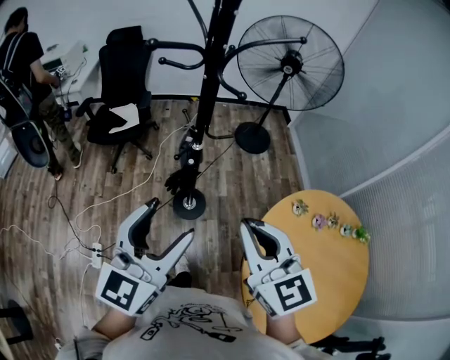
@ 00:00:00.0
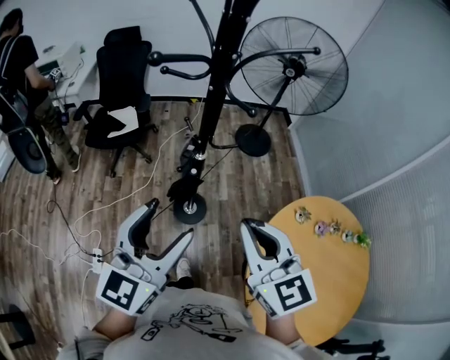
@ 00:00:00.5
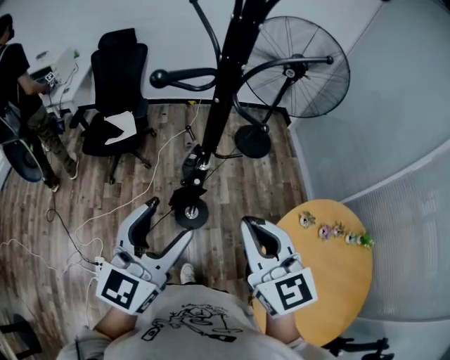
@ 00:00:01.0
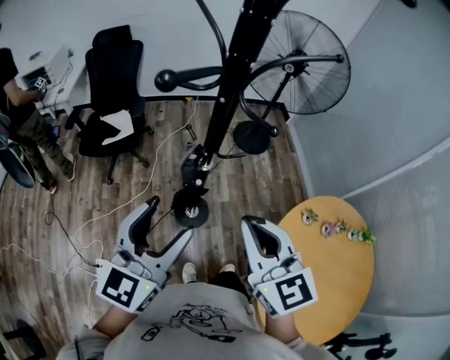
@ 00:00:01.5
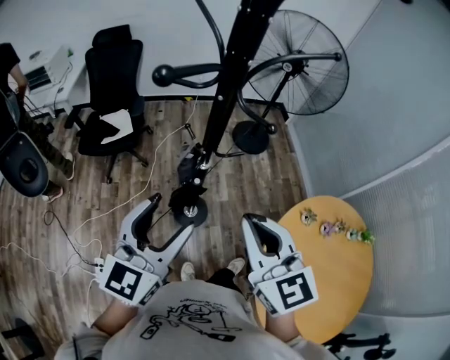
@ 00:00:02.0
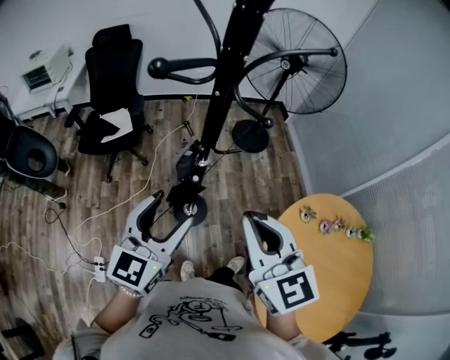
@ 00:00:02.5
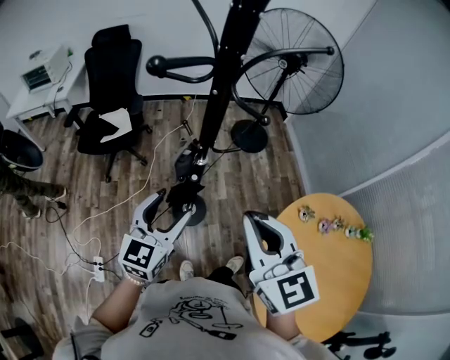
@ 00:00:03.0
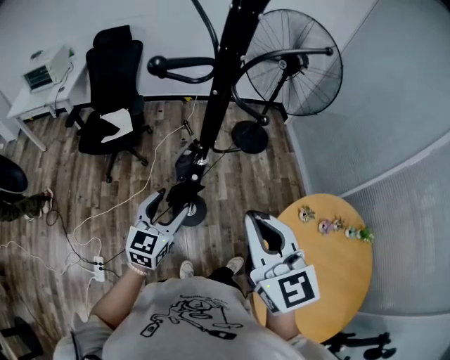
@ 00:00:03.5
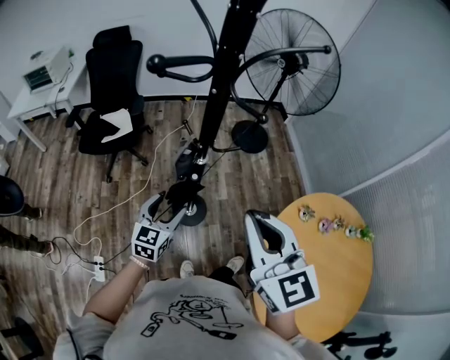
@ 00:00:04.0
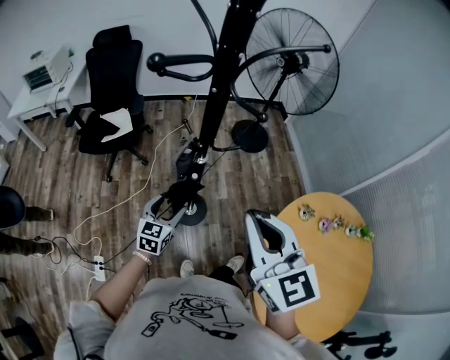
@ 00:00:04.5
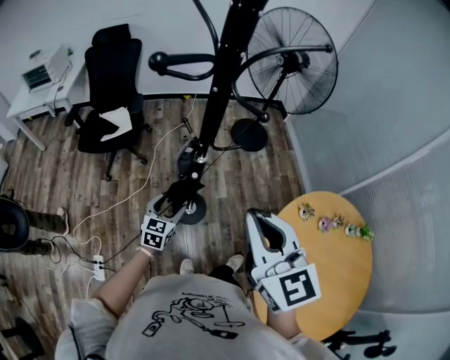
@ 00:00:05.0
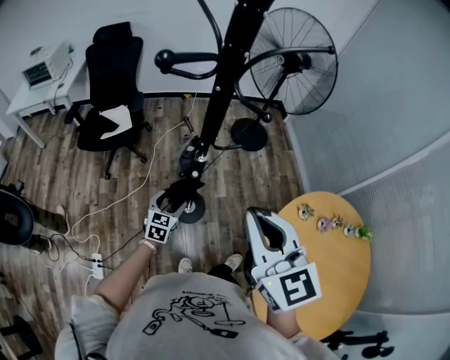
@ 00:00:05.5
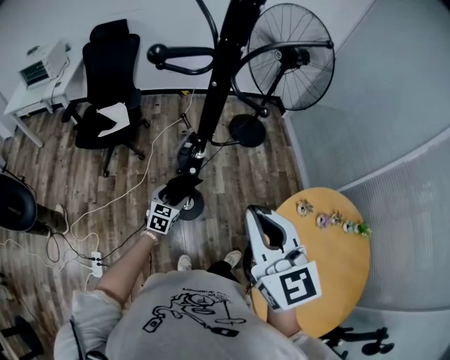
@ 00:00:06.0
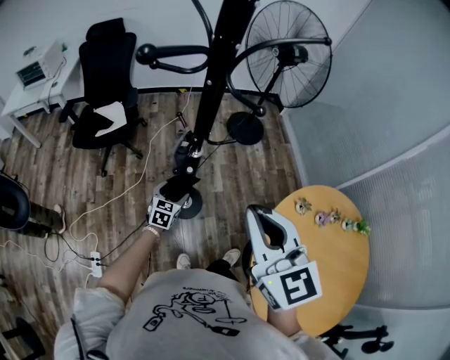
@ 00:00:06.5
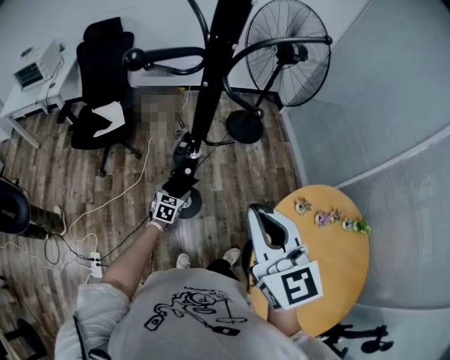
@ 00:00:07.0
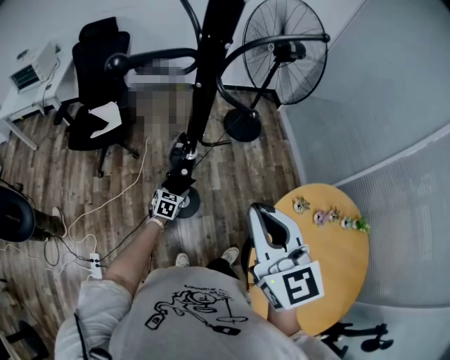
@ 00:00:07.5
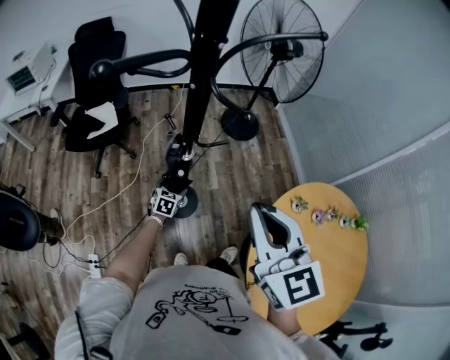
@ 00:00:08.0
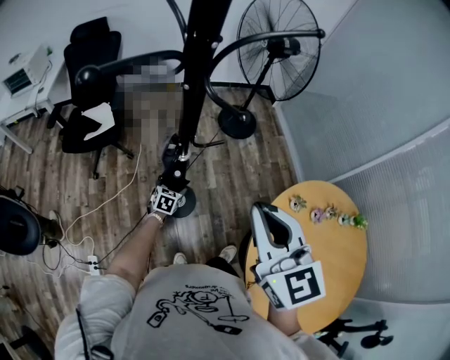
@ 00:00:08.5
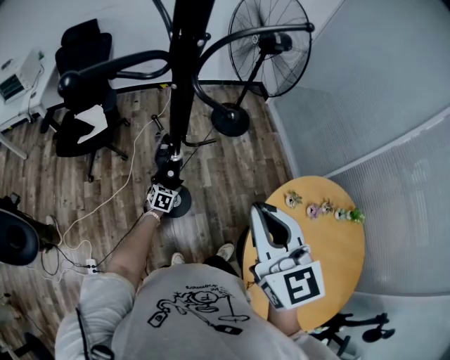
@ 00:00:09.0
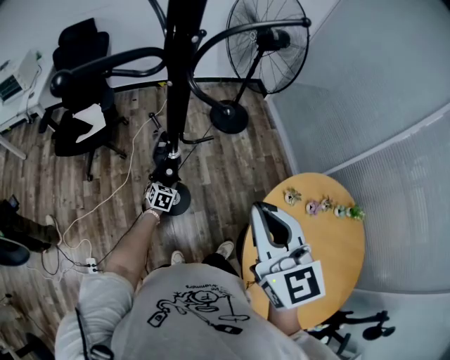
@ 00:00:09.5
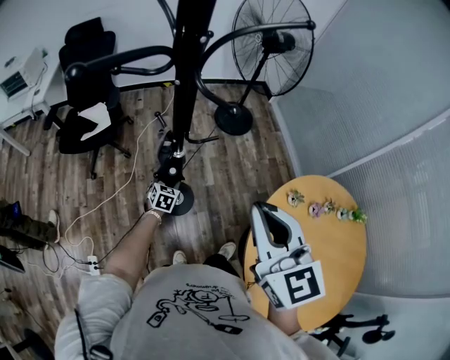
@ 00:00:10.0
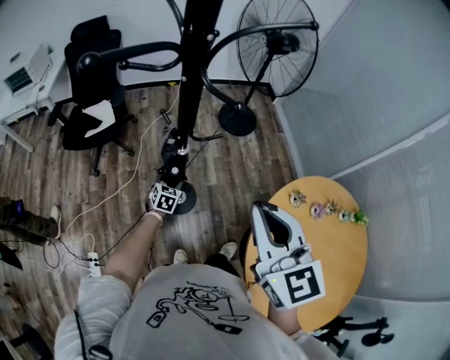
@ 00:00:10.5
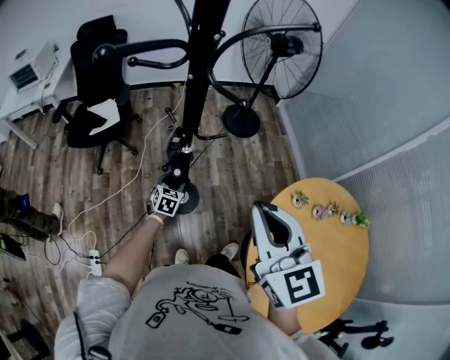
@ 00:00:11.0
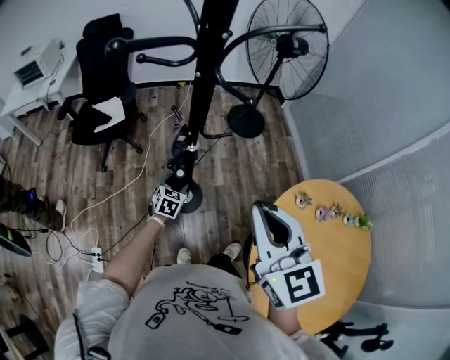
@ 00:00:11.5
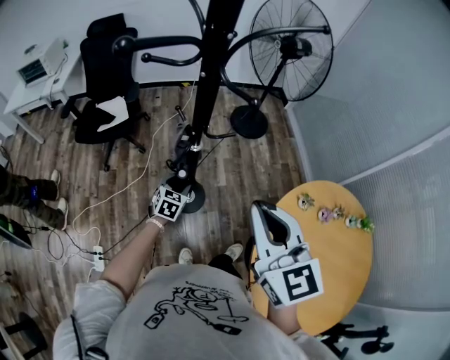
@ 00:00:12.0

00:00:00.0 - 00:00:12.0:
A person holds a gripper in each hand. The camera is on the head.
00:00:00.0 - 00:00:02.0: Both grippers travel together forward and to the left, about 15 cm.
00:00:02.0 - 00:00:04.0: The left gripper moves downward, approximately 20 cm.
00:00:04.0 - 00:00:06.0: The left gripper moves downward, roughly 15 cm.
00:00:06.0 - 00:00:08.0: The left gripper goes about 10 cm downward and forward.
00:00:08.0 - 00:00:10.0: The left gripper closes up.
00:00:10.0 - 00:00:12.0: The left gripper shifts about 10 cm upward and backward.

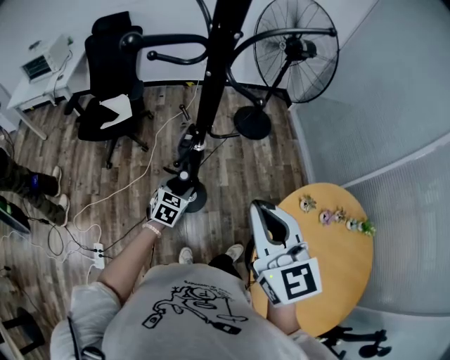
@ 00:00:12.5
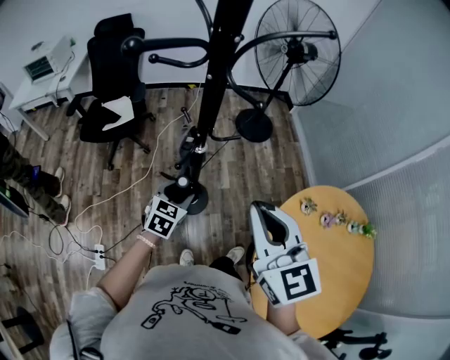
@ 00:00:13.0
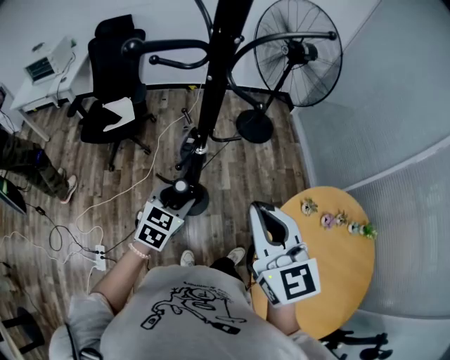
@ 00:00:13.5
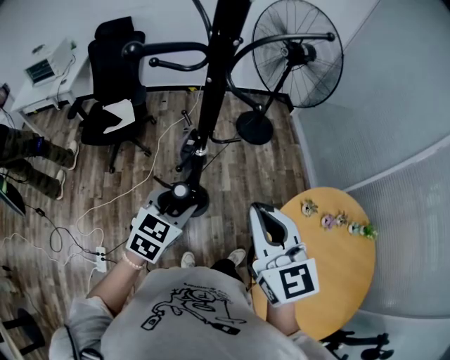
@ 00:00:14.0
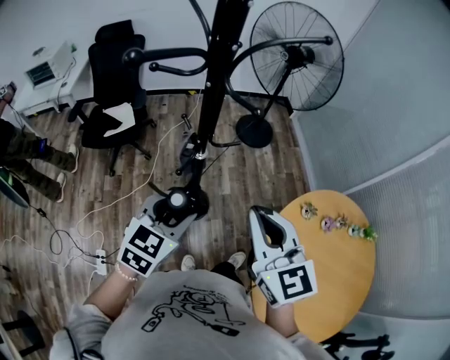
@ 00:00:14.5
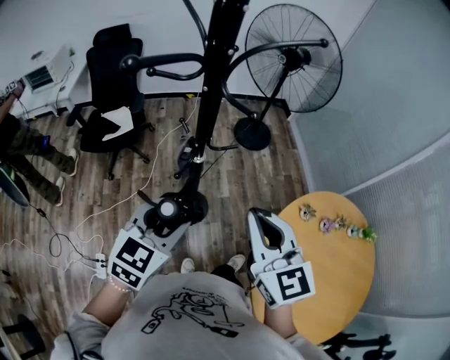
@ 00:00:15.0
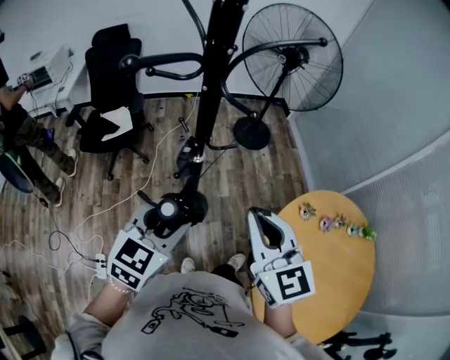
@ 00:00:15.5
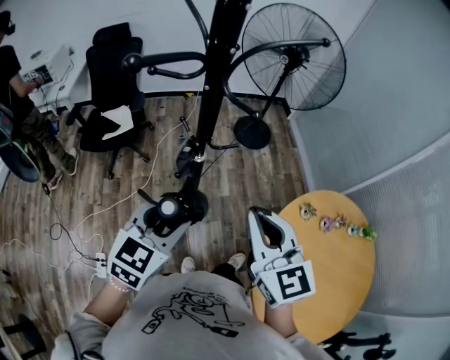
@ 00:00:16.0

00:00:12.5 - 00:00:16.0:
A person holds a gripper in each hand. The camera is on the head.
00:00:12.5 - 00:00:14.5: The left gripper shifts about 25 cm upward and backward.
00:00:14.5 - 00:00:16.0: The grippers move only a little.

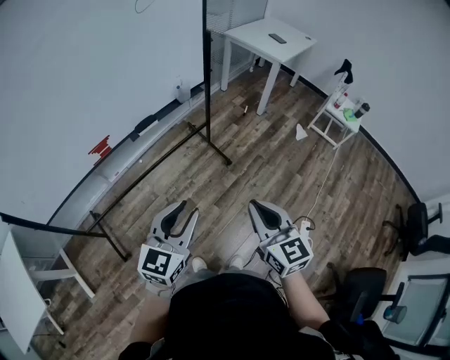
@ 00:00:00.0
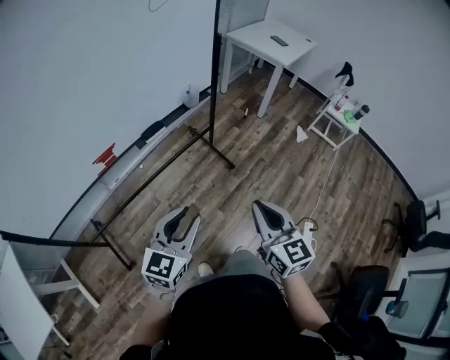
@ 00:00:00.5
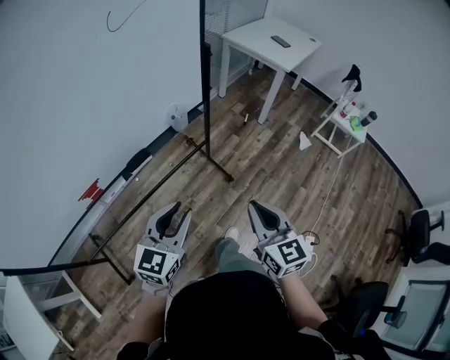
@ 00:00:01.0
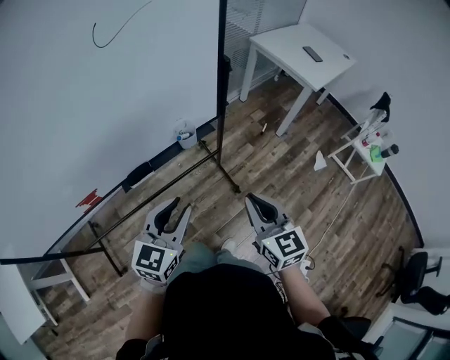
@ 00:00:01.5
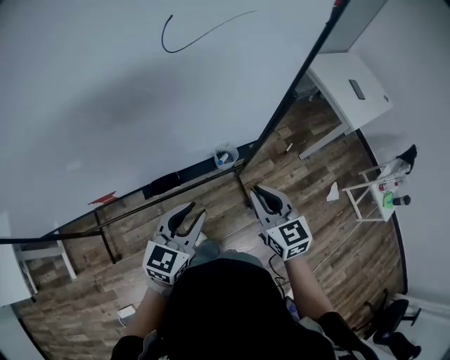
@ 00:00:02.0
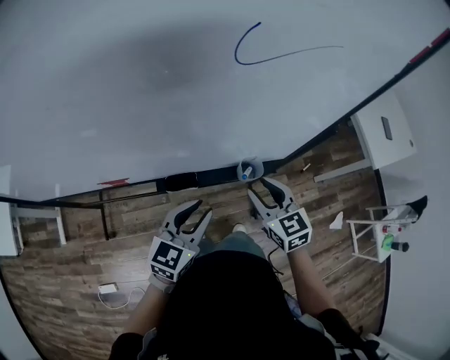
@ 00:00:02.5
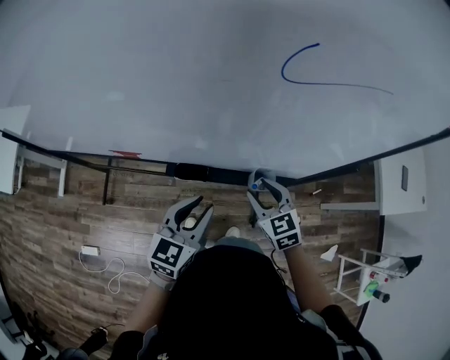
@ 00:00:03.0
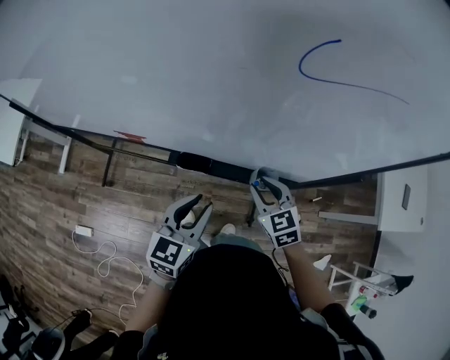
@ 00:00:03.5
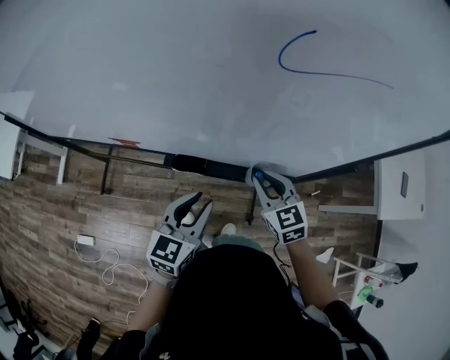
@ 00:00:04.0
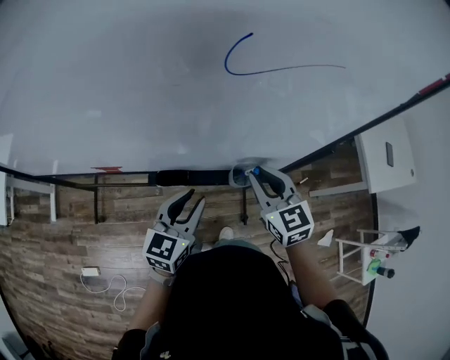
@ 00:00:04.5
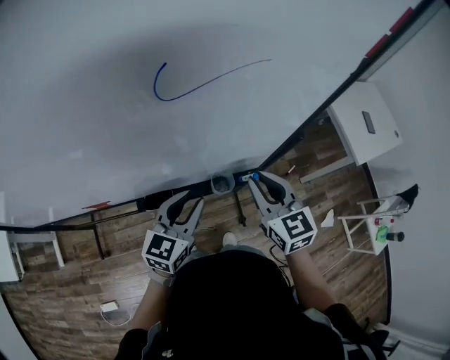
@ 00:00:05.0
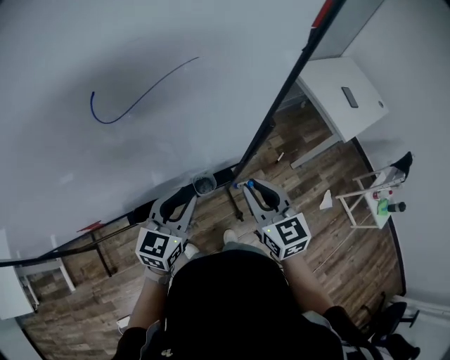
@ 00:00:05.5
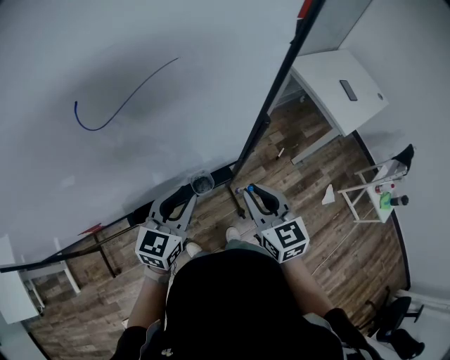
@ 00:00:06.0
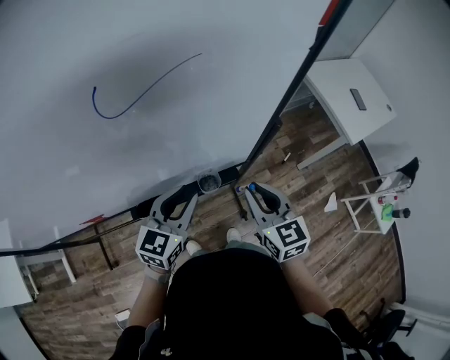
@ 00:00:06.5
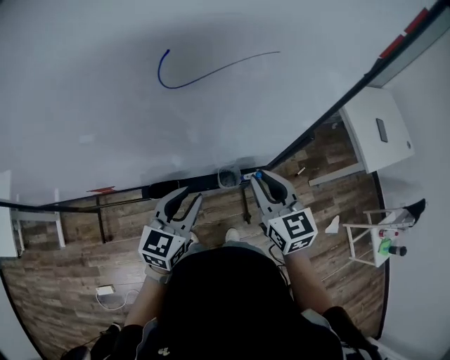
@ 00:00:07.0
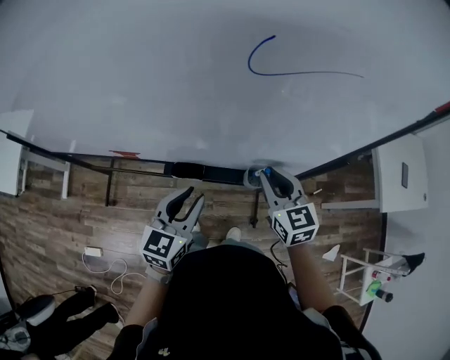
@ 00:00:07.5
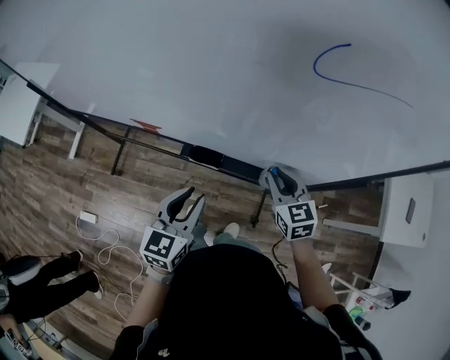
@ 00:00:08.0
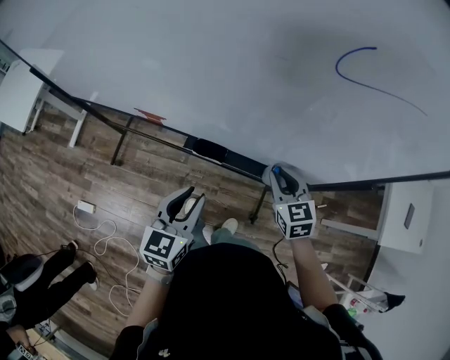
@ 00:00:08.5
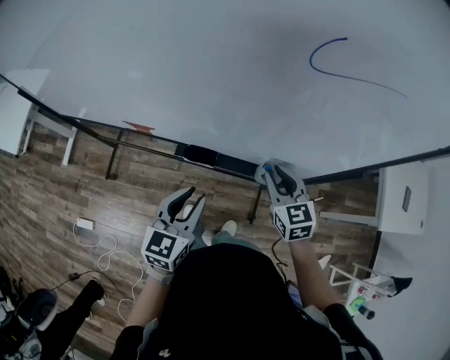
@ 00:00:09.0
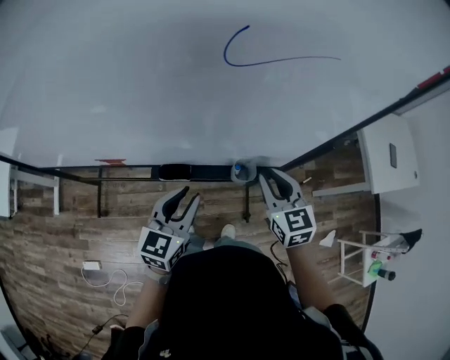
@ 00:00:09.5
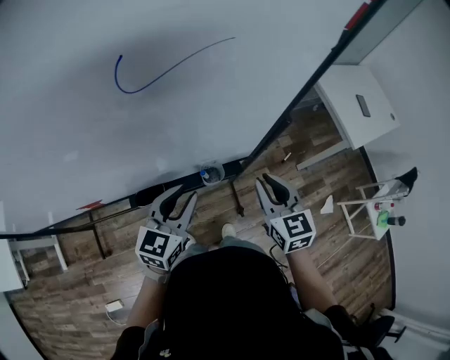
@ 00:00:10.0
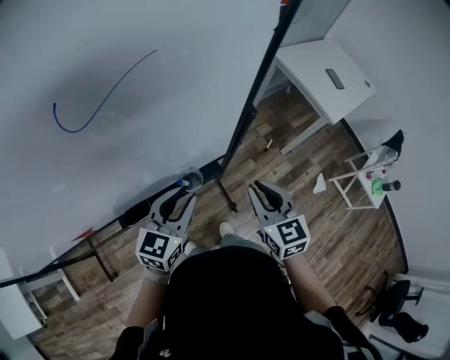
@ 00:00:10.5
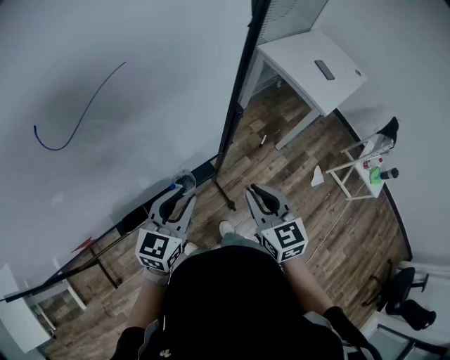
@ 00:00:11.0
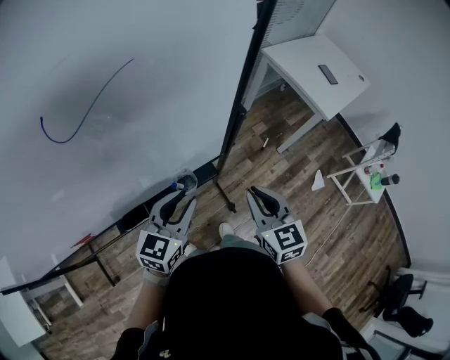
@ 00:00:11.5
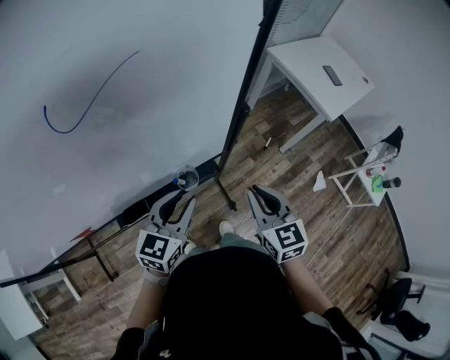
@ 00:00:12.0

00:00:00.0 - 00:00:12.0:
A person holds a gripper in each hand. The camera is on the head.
00:00:00.0 - 00:00:02.0: The two grippers travel together, forward, some 50 cm. The right gripper rotates roughly 20 degrees.
00:00:02.0 - 00:00:04.0: The left gripper changes its angle by about 30 degrees; the right gripper changes place by roughly 15 cm, changes its angle by about 30 degrees, and opens, then closes once more.
00:00:04.0 - 00:00:06.0: The left gripper moves approximately 15 cm, and turns by approximately 30 degrees. Meanwhile the right gripper ends up about 15 cm from where it was, and swivels about 40 degrees.
00:00:06.0 - 00:00:08.0: The left gripper moves some 20 cm, and swivels some 40 degrees. The right gripper moves about 20 cm, and changes its angle by some 40 degrees.
00:00:08.0 - 00:00:10.0: The right gripper ends up roughly 15 cm from where it was, and rotates approximately 30 degrees, while the left gripper moves roughly 15 cm, and turns by roughly 30 degrees.
00:00:10.0 - 00:00:12.0: The two grippers go about 5 cm to the right.
